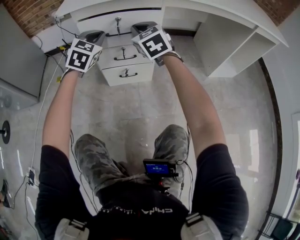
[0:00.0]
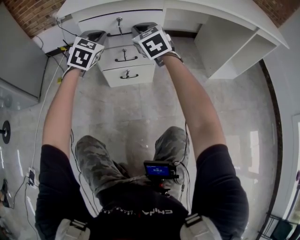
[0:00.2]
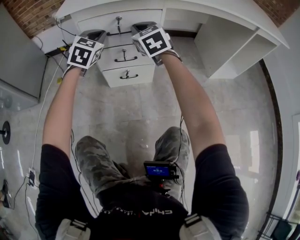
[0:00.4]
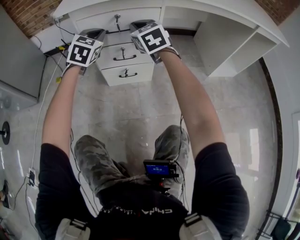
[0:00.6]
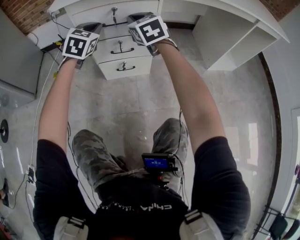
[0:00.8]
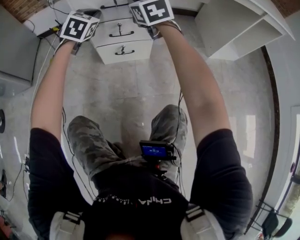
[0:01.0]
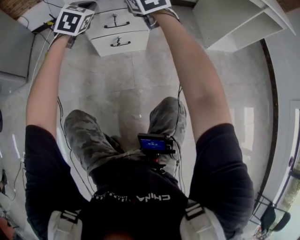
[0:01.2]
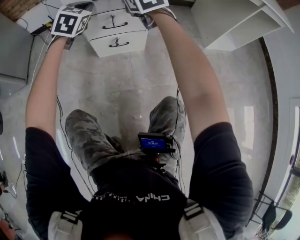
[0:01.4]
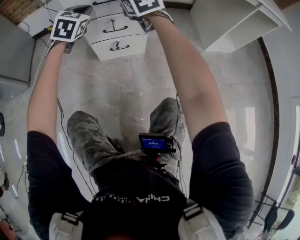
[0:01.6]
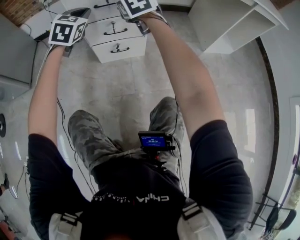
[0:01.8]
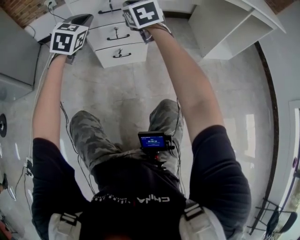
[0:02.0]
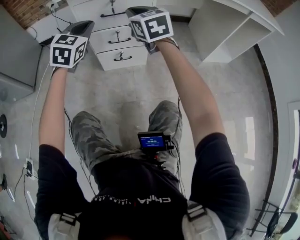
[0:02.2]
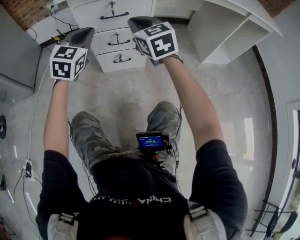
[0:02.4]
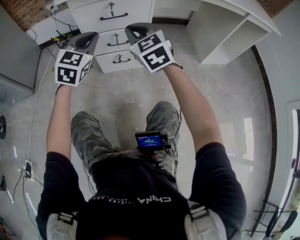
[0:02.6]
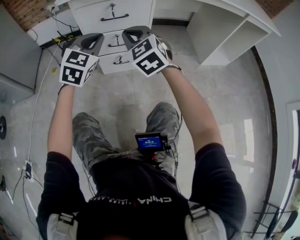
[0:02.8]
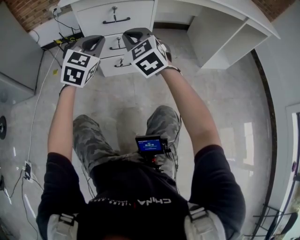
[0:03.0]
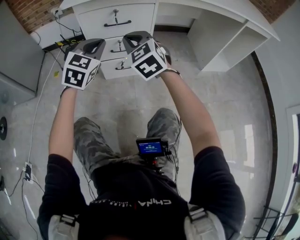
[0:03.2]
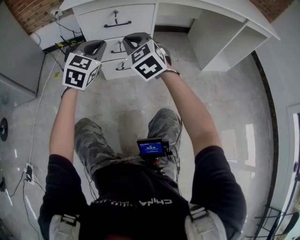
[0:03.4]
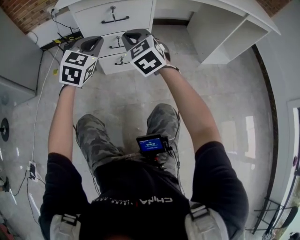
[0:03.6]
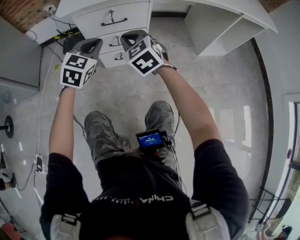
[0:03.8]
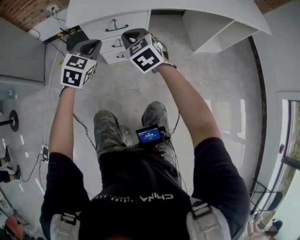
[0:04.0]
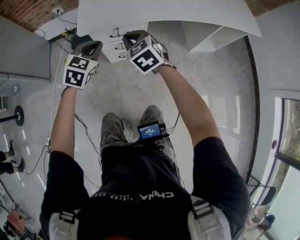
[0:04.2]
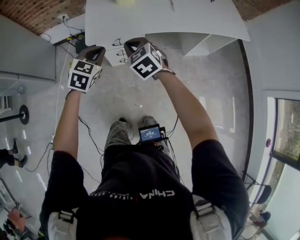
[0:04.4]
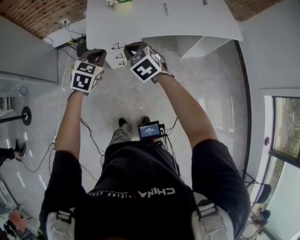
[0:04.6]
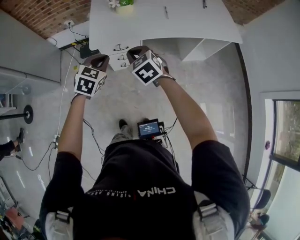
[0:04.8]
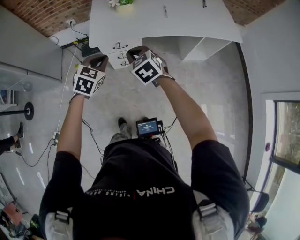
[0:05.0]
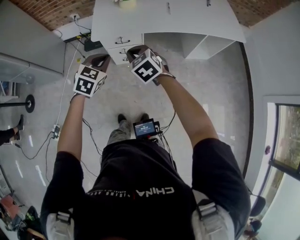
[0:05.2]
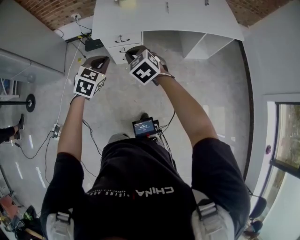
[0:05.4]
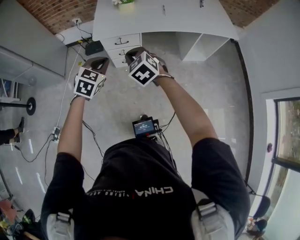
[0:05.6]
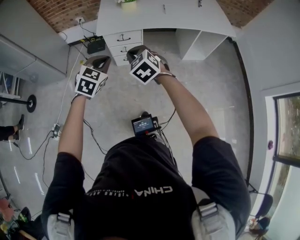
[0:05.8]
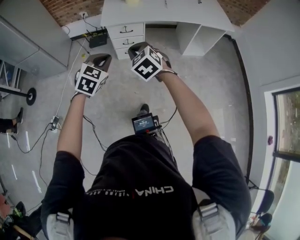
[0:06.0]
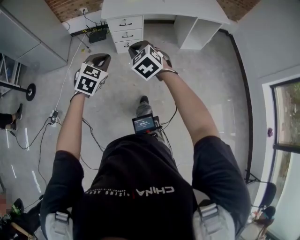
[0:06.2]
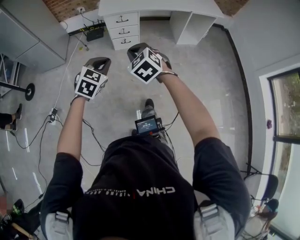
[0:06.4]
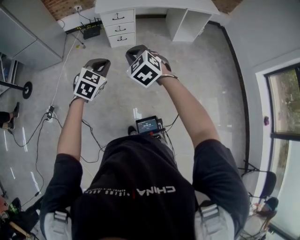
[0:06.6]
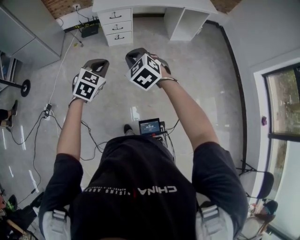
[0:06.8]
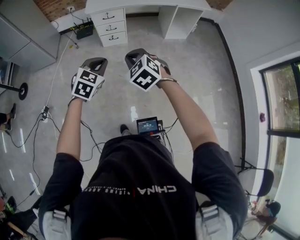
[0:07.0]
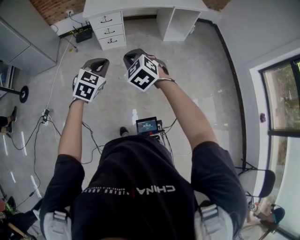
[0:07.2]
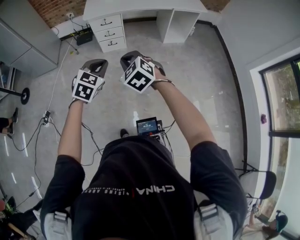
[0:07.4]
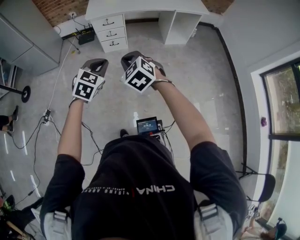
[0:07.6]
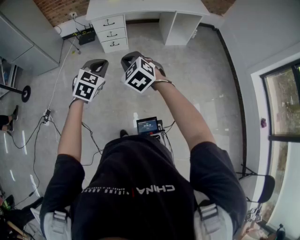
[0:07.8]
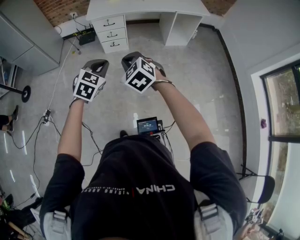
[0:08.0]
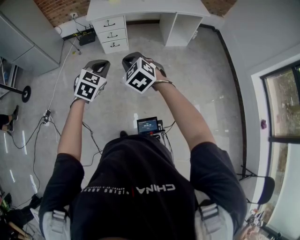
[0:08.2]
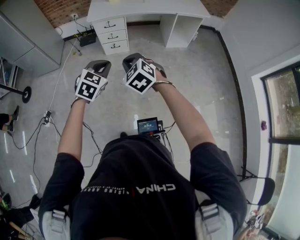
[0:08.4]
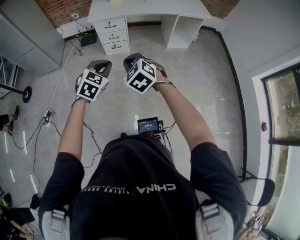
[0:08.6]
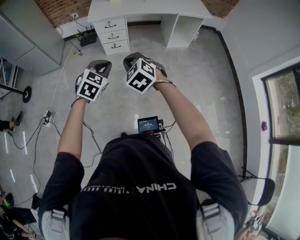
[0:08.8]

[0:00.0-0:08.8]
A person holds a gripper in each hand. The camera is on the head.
0:00.0 to 0:01.4: The grippers stay close to where they were, moving slightly.
0:01.4 to 0:03.0: The left gripper is displaced backward and upward by approximately 15 cm. Meanwhile the right gripper moves backward, roughly 15 cm.
0:03.0 to 0:04.4: The grippers both shift upward by some 35 cm. The right gripper changes its angle by some 20 degrees.
0:04.4 to 0:05.8: The two grippers go roughly 25 cm backward.
0:05.8 to 0:07.4: Both grippers move backward, approximately 35 cm.
0:07.4 to 0:08.8: There are only small adjustments of the grippers.

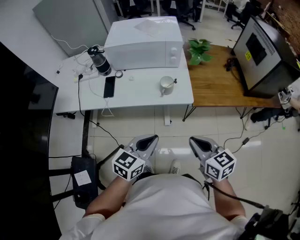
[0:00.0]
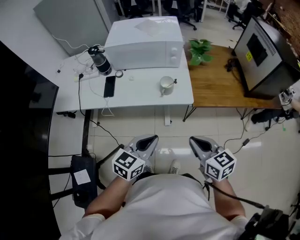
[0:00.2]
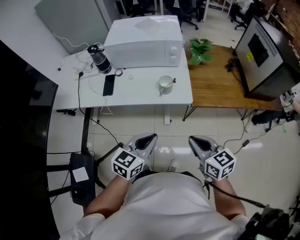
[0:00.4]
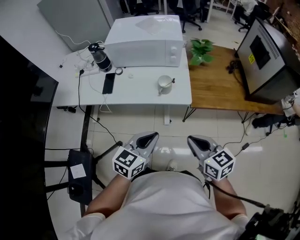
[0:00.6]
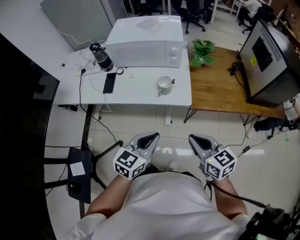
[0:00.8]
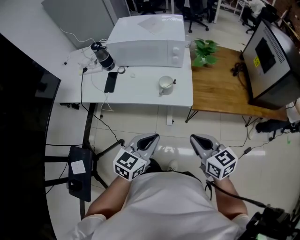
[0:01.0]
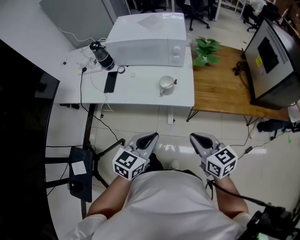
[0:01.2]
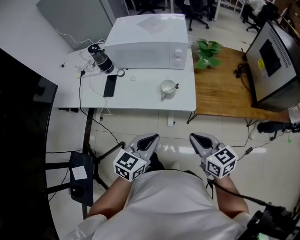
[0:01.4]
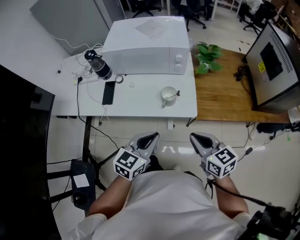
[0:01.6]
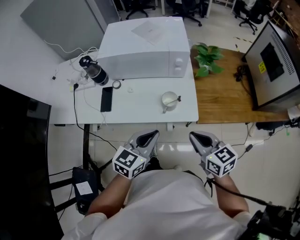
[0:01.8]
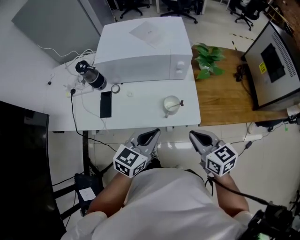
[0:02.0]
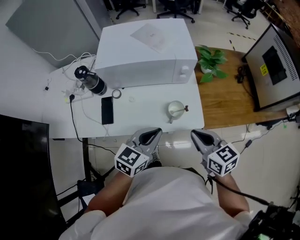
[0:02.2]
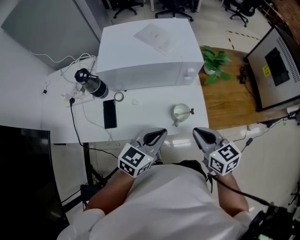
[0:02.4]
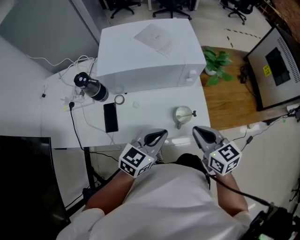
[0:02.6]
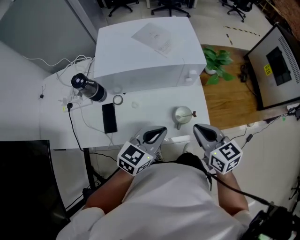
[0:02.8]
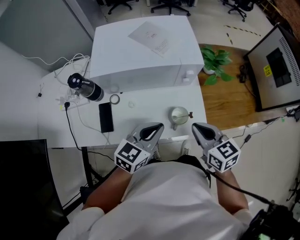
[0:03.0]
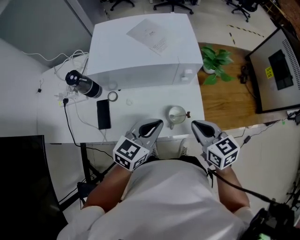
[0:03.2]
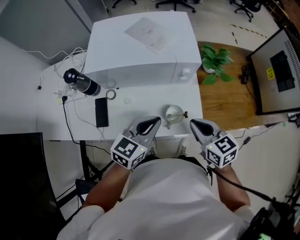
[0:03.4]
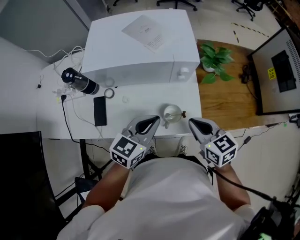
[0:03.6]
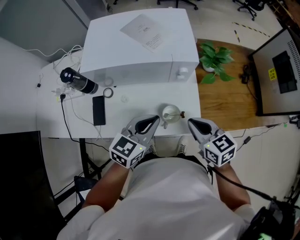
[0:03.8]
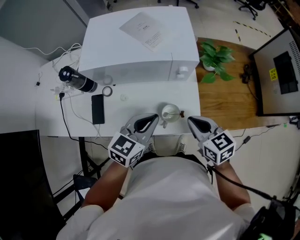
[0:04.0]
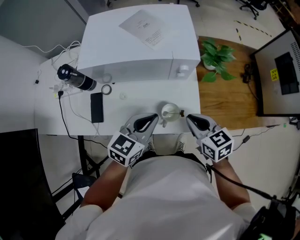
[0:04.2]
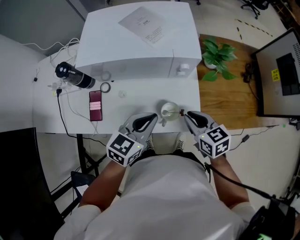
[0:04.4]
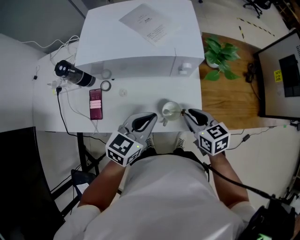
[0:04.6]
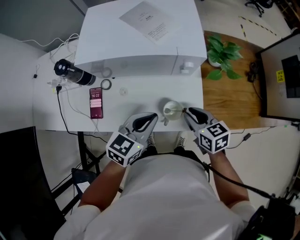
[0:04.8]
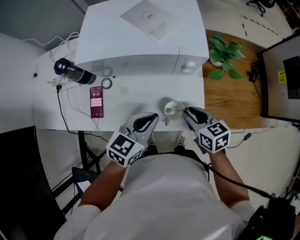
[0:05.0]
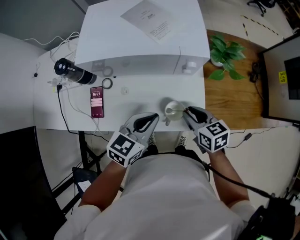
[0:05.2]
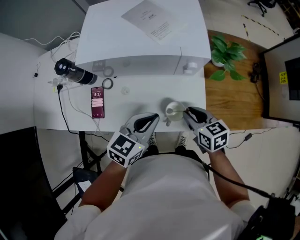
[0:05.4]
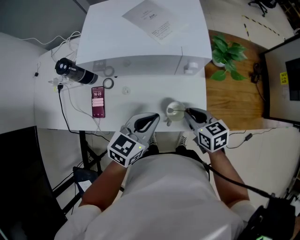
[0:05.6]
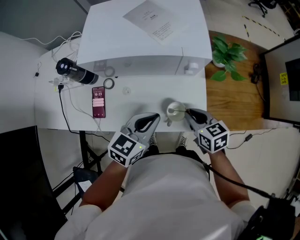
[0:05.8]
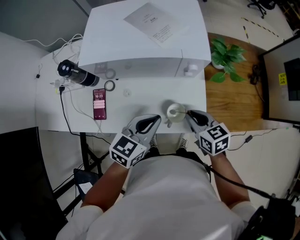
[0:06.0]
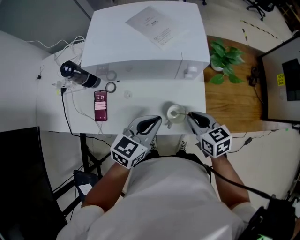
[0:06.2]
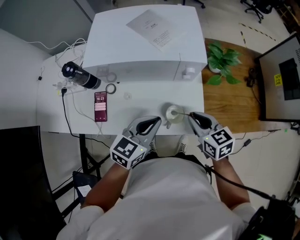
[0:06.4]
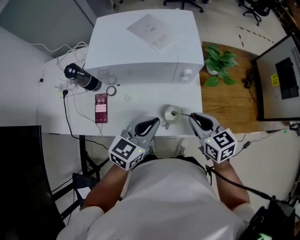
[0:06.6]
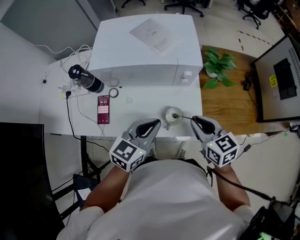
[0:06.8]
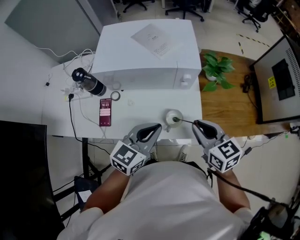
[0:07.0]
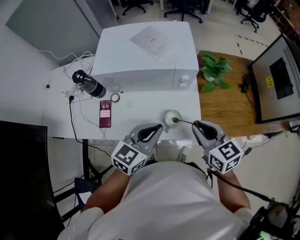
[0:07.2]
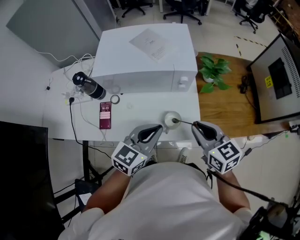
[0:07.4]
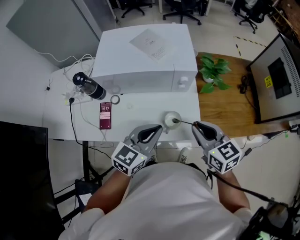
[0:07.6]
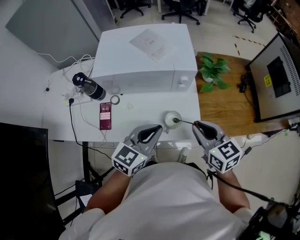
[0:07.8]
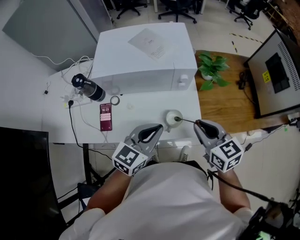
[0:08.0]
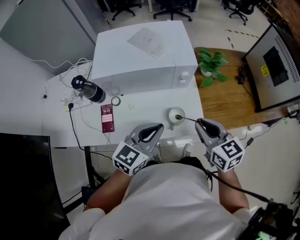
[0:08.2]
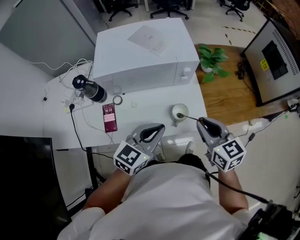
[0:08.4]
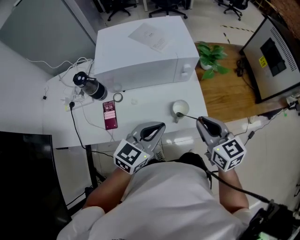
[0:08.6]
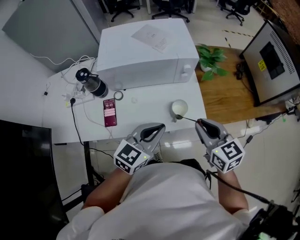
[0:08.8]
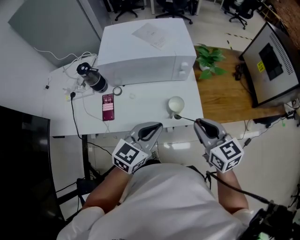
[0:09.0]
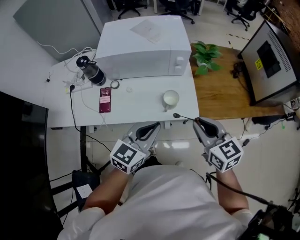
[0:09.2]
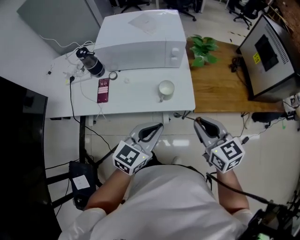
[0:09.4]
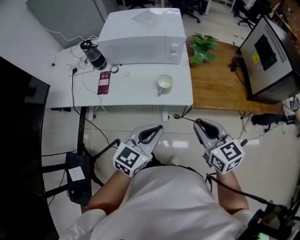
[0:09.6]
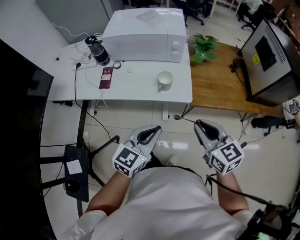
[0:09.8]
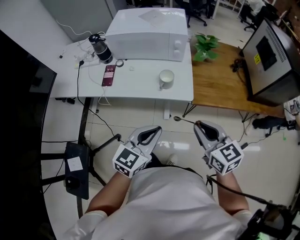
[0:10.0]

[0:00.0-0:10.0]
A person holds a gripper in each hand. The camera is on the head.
0:00.0 to 0:01.4: The grippers both shift forward by some 5 cm.
0:01.4 to 0:02.8: Both grippers move forward and to the left, some 25 cm.
0:02.8 to 0:04.2: The right gripper goes approximately 5 cm downward. Meanwhile the left gripper changes place by roughly 5 cm.
0:04.2 to 0:05.8: The right gripper travels downward by some 5 cm.
0:05.8 to 0:07.2: The left gripper travels upward by some 5 cm, while the right gripper travels upward by approximately 15 cm.
0:07.2 to 0:08.6: The left gripper ends up about 5 cm from where it was. The right gripper shifts by approximately 5 cm.
0:08.6 to 0:10.0: The grippers both shift backward and to the right by about 25 cm.

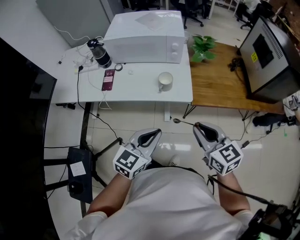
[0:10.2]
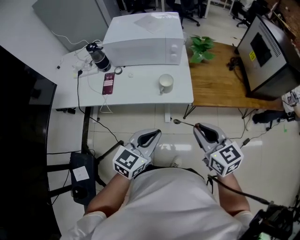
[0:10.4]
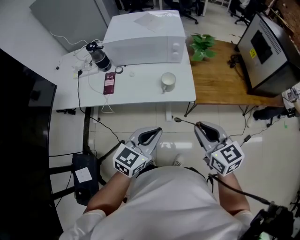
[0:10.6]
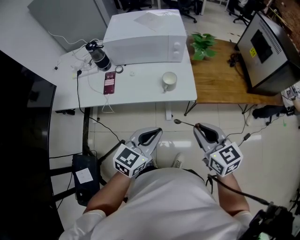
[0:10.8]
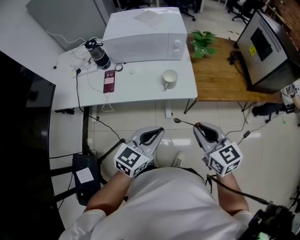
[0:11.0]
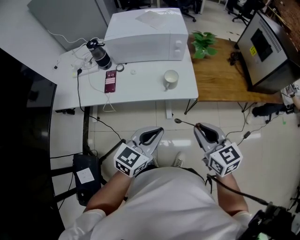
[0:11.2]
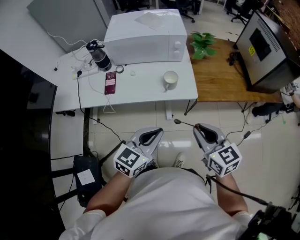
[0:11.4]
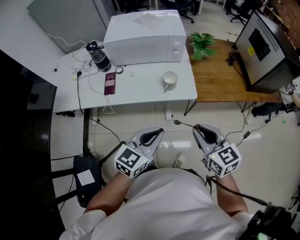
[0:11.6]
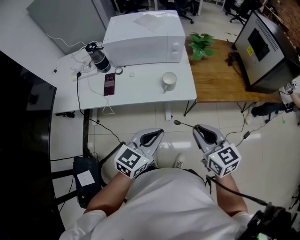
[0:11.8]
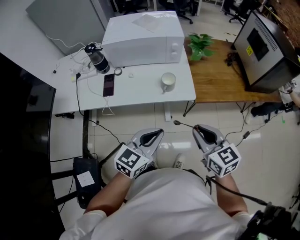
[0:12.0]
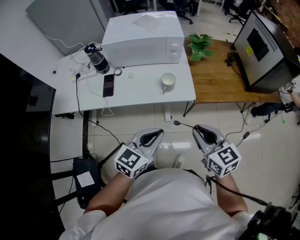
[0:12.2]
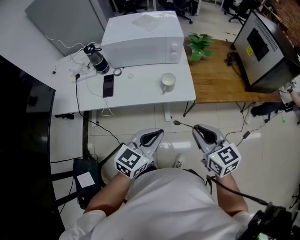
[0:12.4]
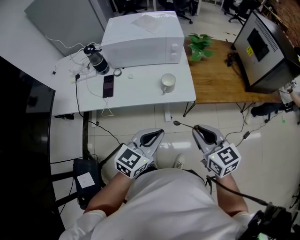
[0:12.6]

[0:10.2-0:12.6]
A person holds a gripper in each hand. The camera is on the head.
0:10.2 to 0:11.4: Both grippers move to the left, roughly 5 cm.
0:11.4 to 0:12.6: The two grippers keep their place.

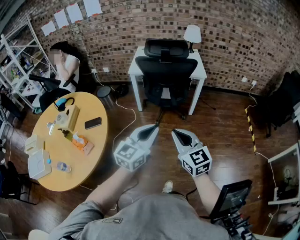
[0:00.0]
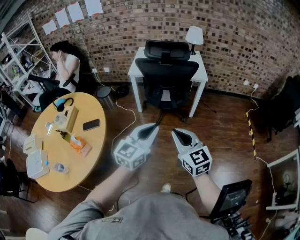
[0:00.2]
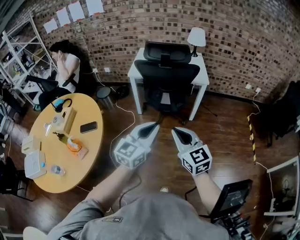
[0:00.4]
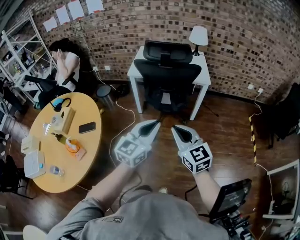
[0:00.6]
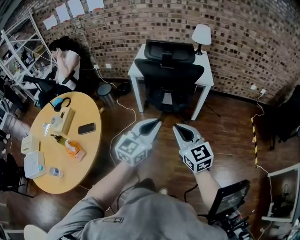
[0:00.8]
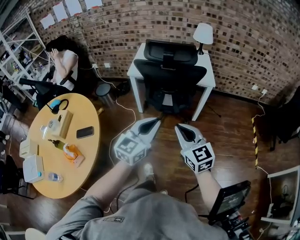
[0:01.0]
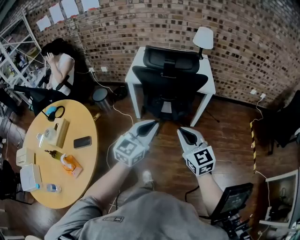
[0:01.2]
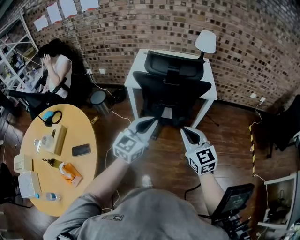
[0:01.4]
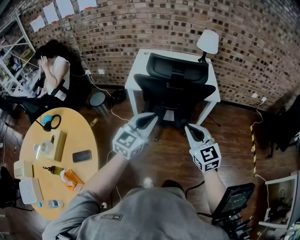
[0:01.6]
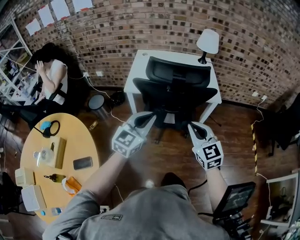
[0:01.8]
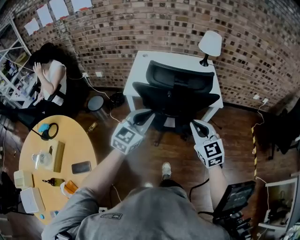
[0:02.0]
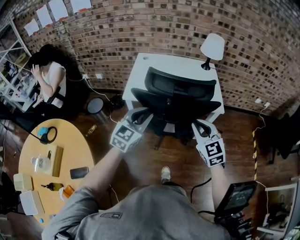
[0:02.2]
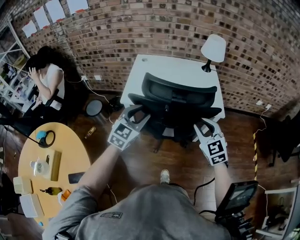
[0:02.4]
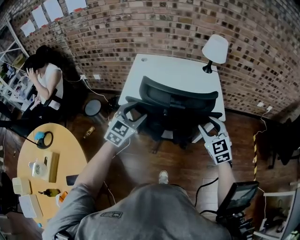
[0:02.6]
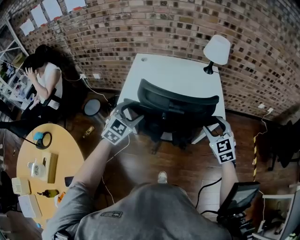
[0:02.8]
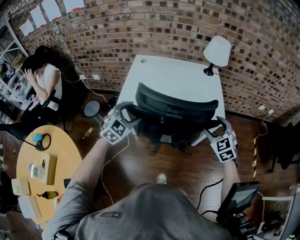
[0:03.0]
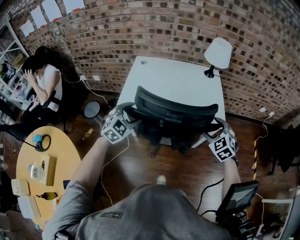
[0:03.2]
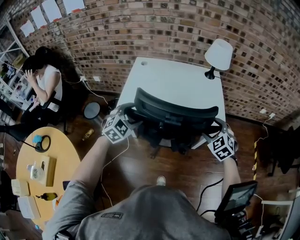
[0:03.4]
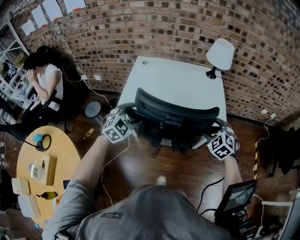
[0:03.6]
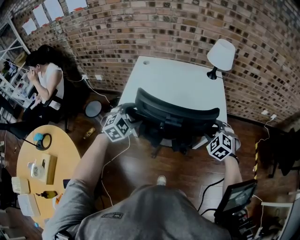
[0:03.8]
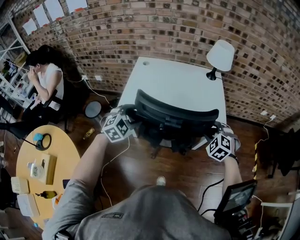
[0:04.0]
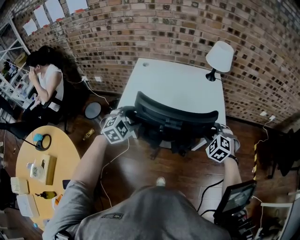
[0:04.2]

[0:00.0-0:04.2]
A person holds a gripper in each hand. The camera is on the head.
0:00.0 to 0:01.4: The grippers both shift forward by roughly 30 cm.
0:01.4 to 0:02.8: Both grippers travel together forward, about 30 cm. The left gripper rotates roughly 30 degrees, and opens up; the right gripper changes its angle by some 20 degrees, and opens its fingers.
0:02.8 to 0:04.2: The left gripper swivels some 20 degrees; the right gripper moves downward, roughly 5 cm, and rotates approximately 40 degrees.
